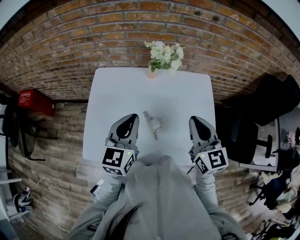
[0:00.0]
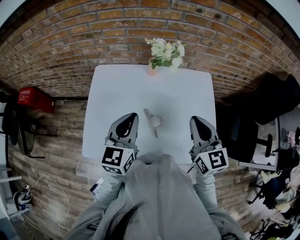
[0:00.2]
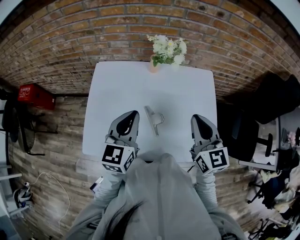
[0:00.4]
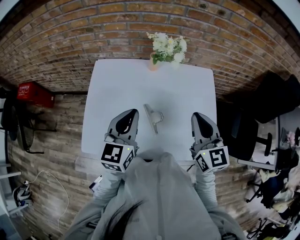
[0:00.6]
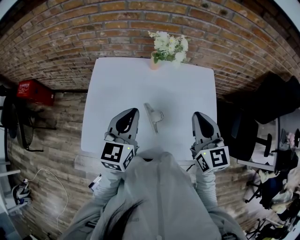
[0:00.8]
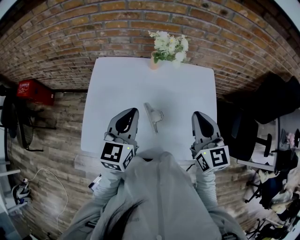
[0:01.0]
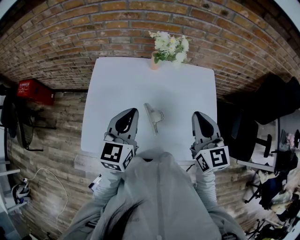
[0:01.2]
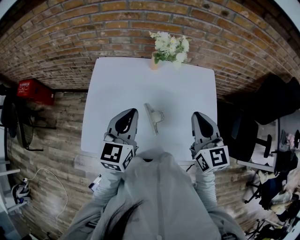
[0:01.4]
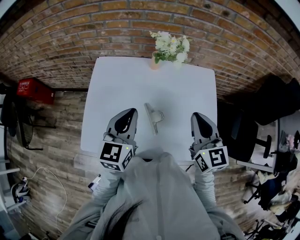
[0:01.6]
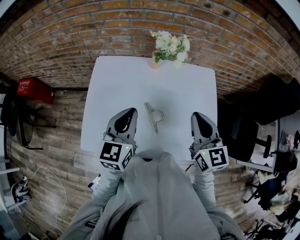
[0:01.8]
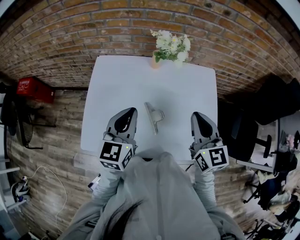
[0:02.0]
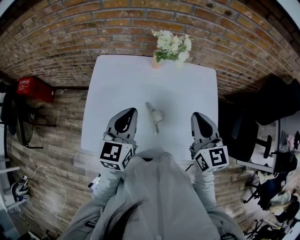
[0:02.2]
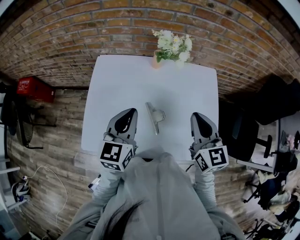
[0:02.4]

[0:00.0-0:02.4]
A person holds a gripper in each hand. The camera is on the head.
0:00.0 to 0:01.2: The two grippers keep their place.
0:01.2 to 0:02.4: There are only small adjustments of the grippers.

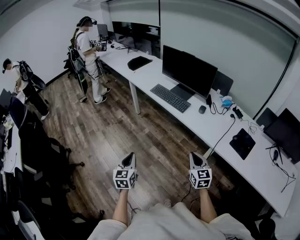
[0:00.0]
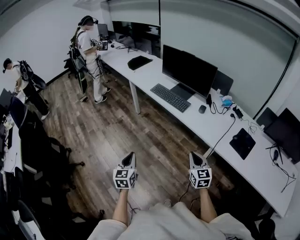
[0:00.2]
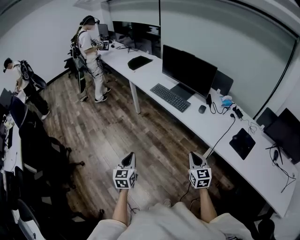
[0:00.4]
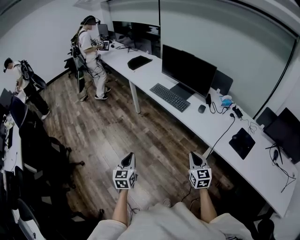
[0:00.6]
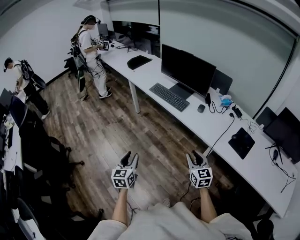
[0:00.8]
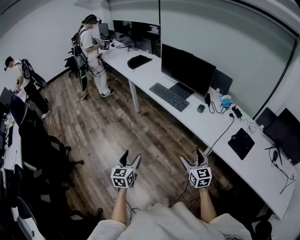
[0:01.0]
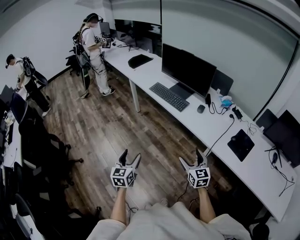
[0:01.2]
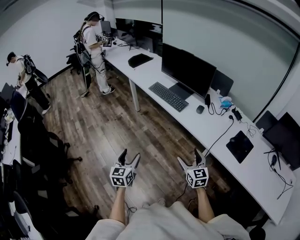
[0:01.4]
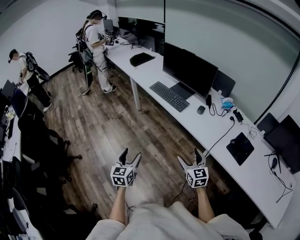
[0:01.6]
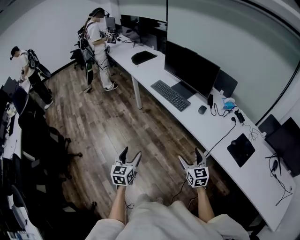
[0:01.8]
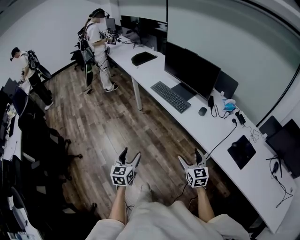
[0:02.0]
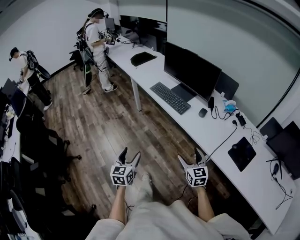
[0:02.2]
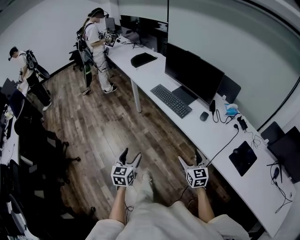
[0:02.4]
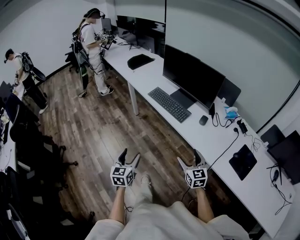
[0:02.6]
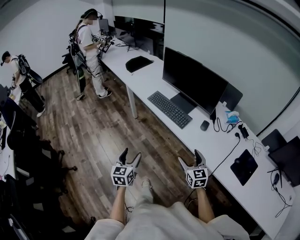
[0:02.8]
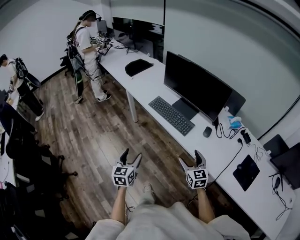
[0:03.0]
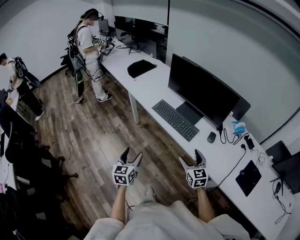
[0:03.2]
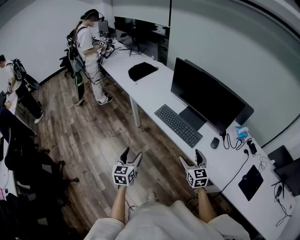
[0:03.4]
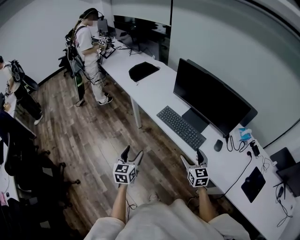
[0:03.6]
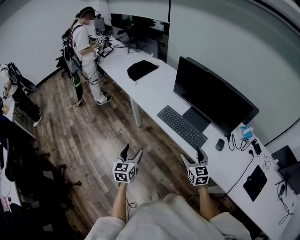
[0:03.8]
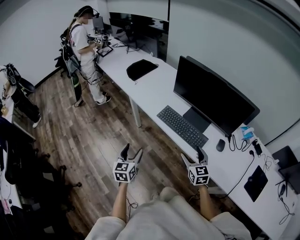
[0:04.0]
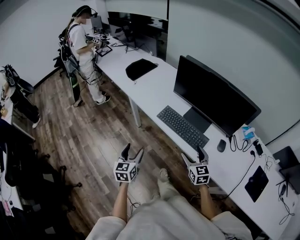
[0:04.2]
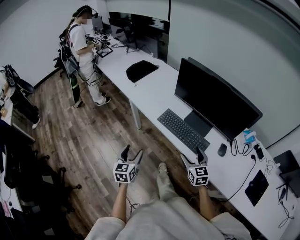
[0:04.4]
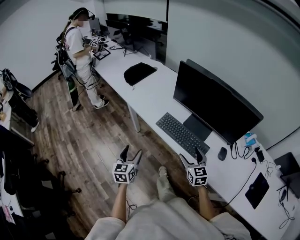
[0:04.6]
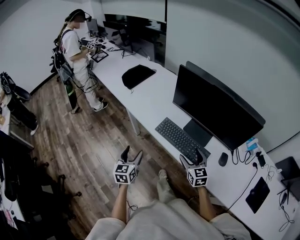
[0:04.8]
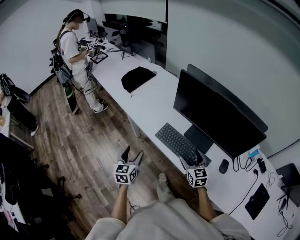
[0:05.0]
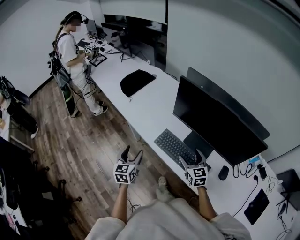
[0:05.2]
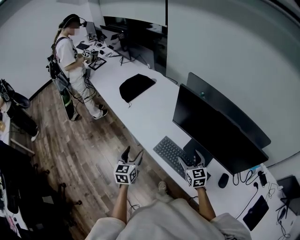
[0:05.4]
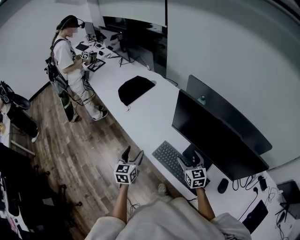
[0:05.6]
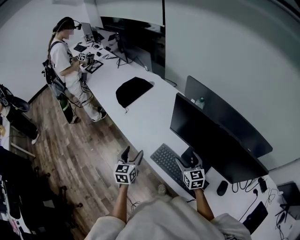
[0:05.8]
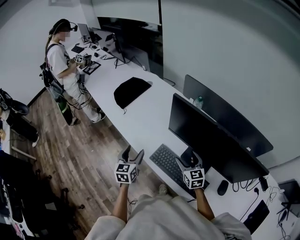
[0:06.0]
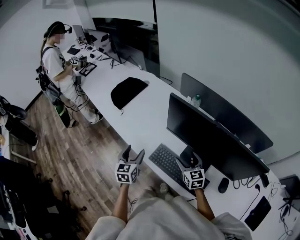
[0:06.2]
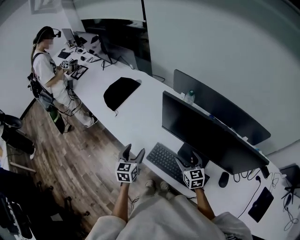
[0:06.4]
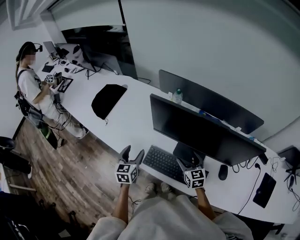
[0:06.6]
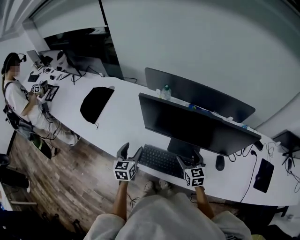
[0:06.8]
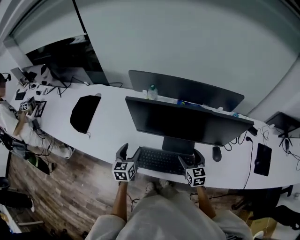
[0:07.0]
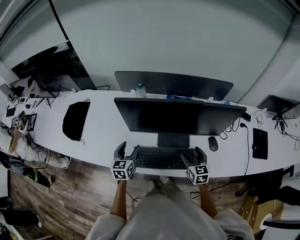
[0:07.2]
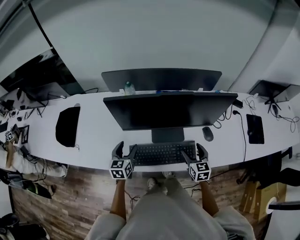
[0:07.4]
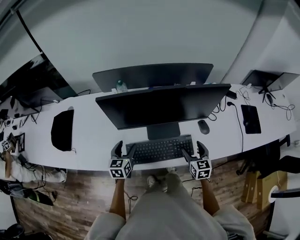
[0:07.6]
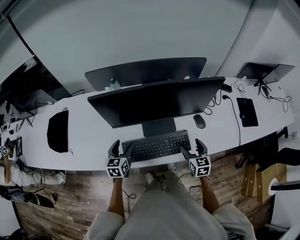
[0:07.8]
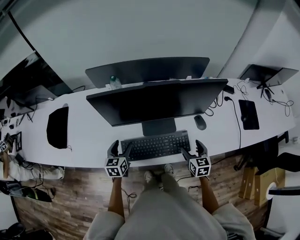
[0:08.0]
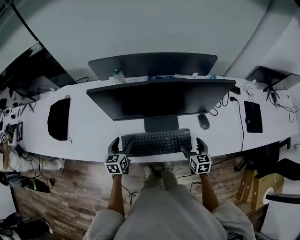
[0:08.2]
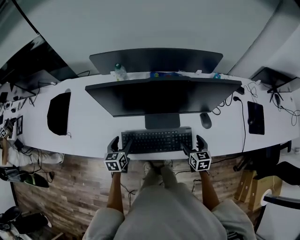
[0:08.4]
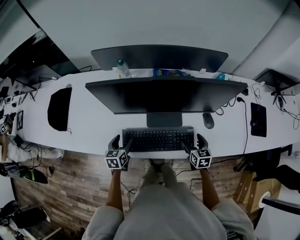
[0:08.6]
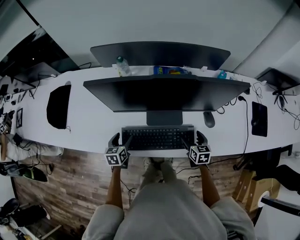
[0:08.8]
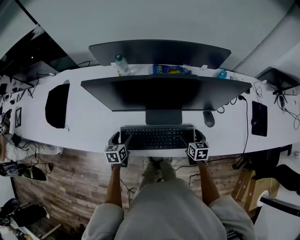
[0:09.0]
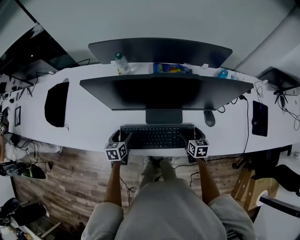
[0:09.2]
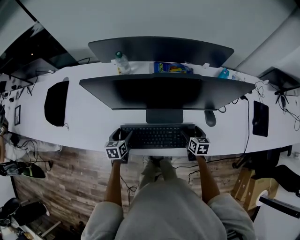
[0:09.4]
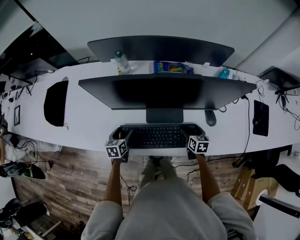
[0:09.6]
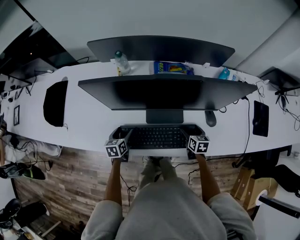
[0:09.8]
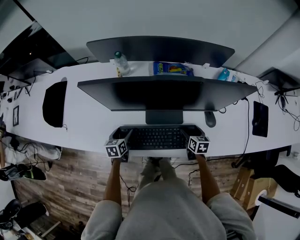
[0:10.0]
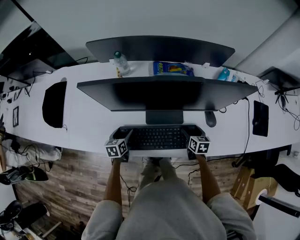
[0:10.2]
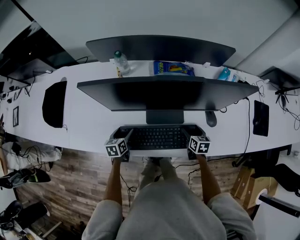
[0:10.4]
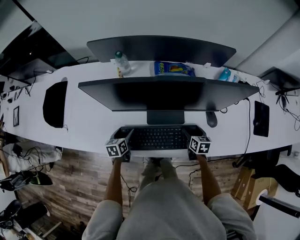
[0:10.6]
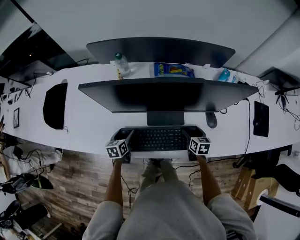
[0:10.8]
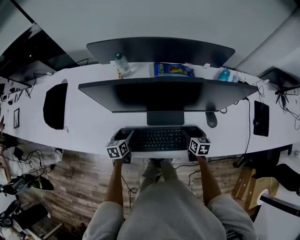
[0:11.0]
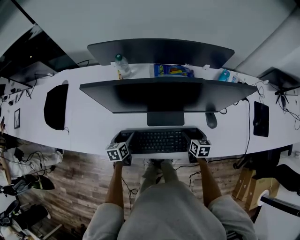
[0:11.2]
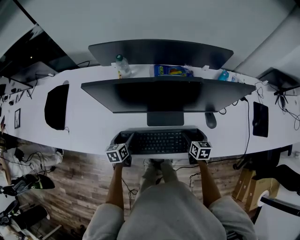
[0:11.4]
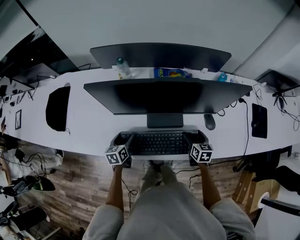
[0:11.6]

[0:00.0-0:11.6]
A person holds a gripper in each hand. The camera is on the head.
0:00.0 to 0:01.4: The right gripper opens its fingers; the left gripper shifts about 5 cm to the right, and opens.
0:01.4 to 0:02.8: Both grippers move forward, about 20 cm.
0:02.8 to 0:04.4: The grippers both shift forward by about 30 cm.
0:04.4 to 0:05.8: The two grippers go some 30 cm forward.
0:05.8 to 0:07.2: The left gripper ends up roughly 15 cm from where it was, and rotates about 40 degrees. Meanwhile the right gripper ends up approximately 15 cm from where it was, and swivels approximately 40 degrees.
0:07.2 to 0:08.8: The right gripper moves downward and to the right, roughly 15 cm, while the left gripper is displaced downward by approximately 15 cm.
0:08.8 to 0:10.2: The left gripper moves approximately 5 cm. Meanwhile the right gripper ends up about 5 cm from where it was.
0:10.2 to 0:11.6: The right gripper shifts about 5 cm upward.

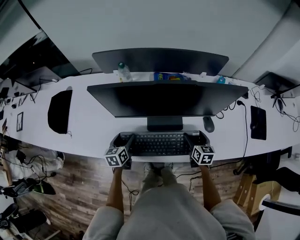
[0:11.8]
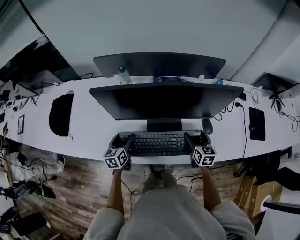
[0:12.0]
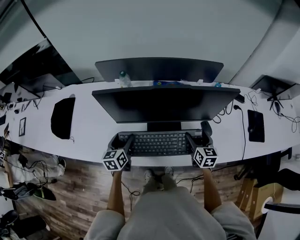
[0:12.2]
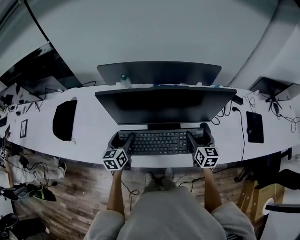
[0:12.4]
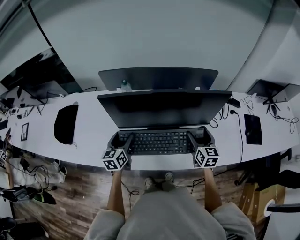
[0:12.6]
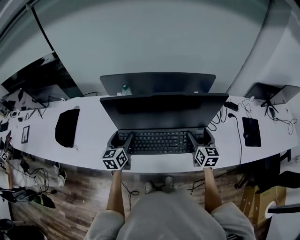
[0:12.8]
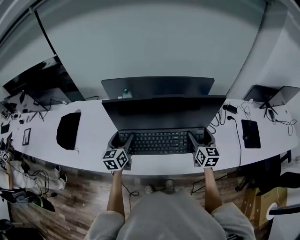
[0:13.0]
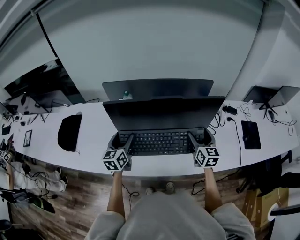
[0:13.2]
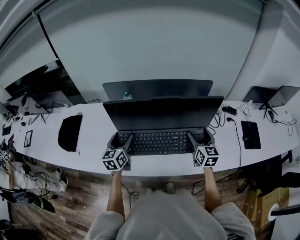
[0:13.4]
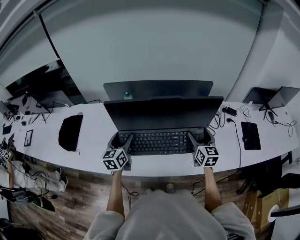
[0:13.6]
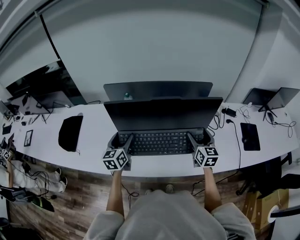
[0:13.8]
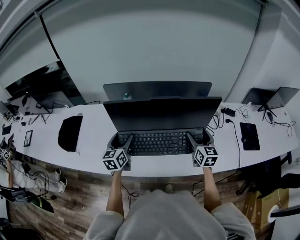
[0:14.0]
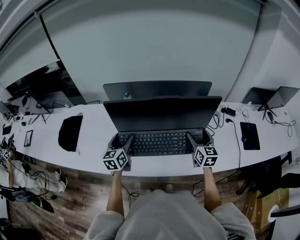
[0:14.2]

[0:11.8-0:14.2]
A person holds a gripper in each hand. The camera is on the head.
0:11.8 to 0:13.0: Both grippers travel together upward, some 20 cm. The right gripper turns by some 20 degrees, while the left gripper rotates roughly 20 degrees.
0:13.0 to 0:14.2: The grippers stay close to where they were, moving slightly.

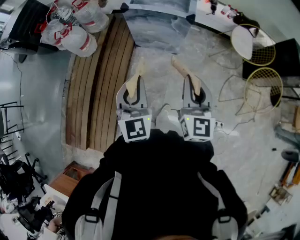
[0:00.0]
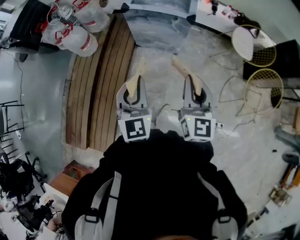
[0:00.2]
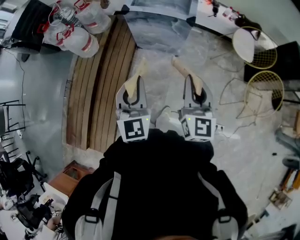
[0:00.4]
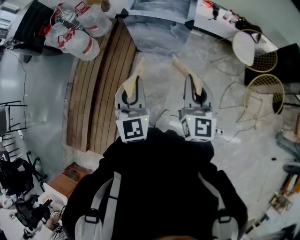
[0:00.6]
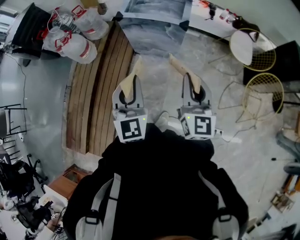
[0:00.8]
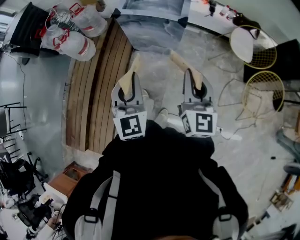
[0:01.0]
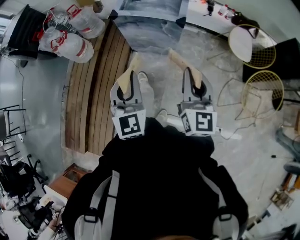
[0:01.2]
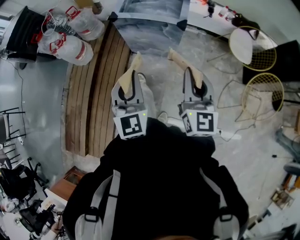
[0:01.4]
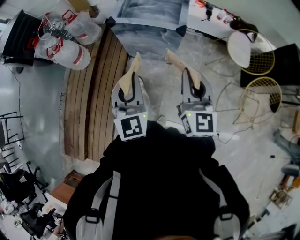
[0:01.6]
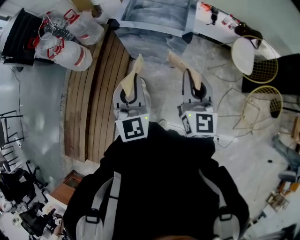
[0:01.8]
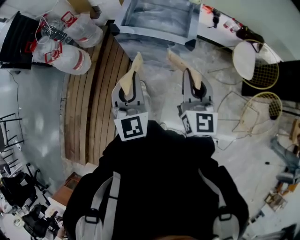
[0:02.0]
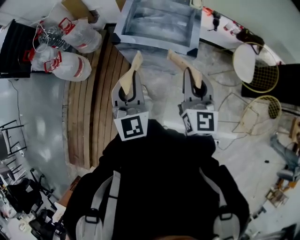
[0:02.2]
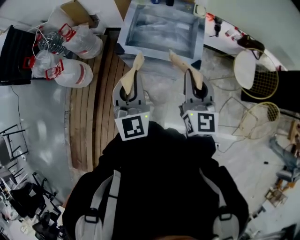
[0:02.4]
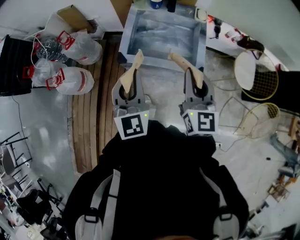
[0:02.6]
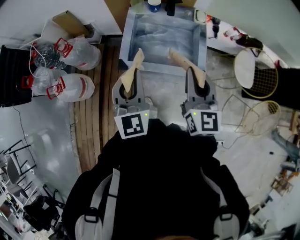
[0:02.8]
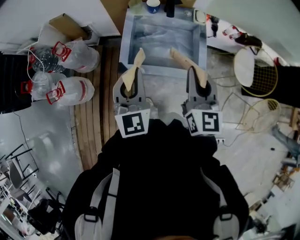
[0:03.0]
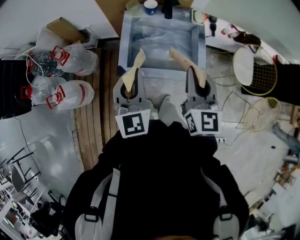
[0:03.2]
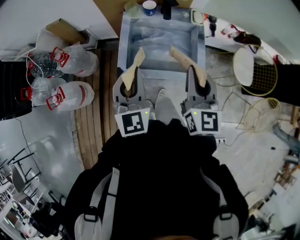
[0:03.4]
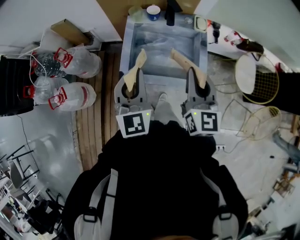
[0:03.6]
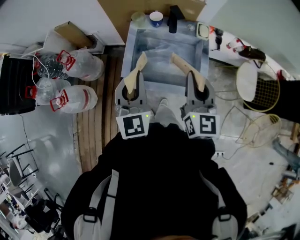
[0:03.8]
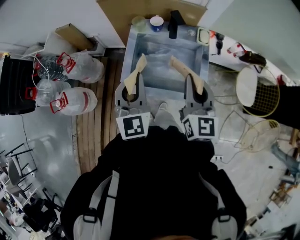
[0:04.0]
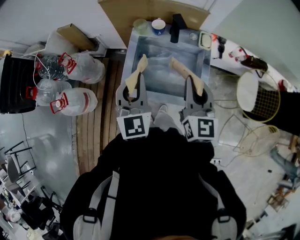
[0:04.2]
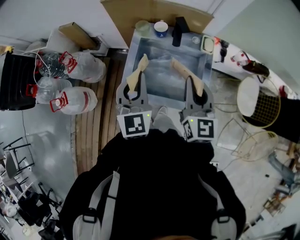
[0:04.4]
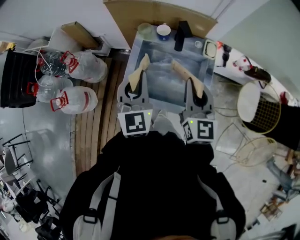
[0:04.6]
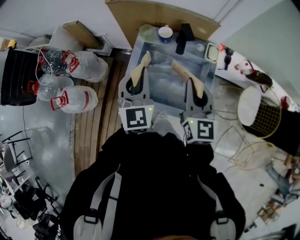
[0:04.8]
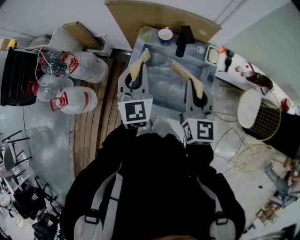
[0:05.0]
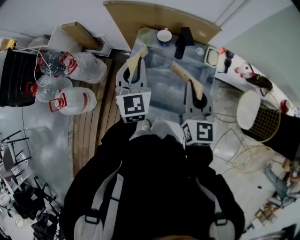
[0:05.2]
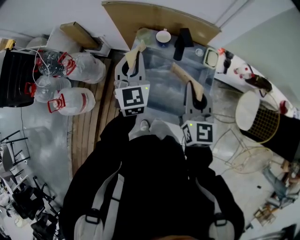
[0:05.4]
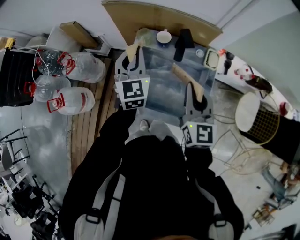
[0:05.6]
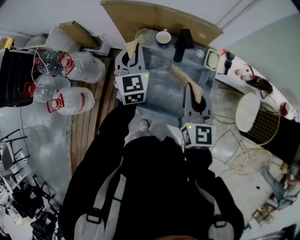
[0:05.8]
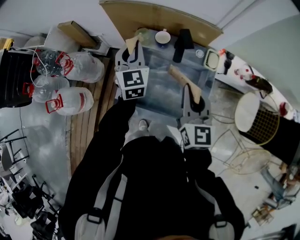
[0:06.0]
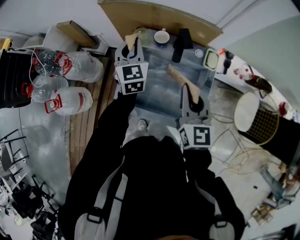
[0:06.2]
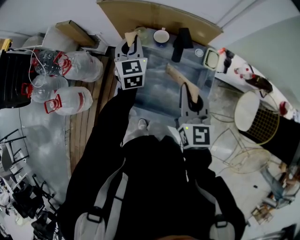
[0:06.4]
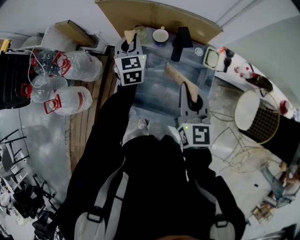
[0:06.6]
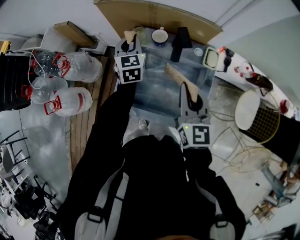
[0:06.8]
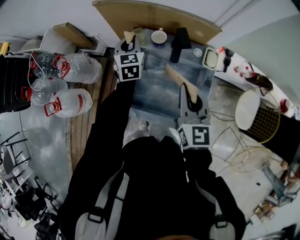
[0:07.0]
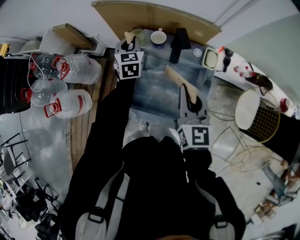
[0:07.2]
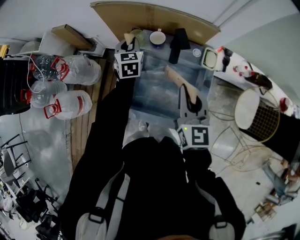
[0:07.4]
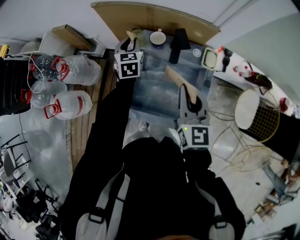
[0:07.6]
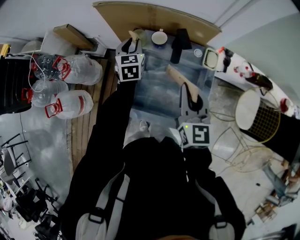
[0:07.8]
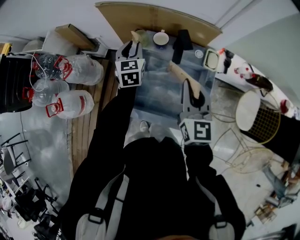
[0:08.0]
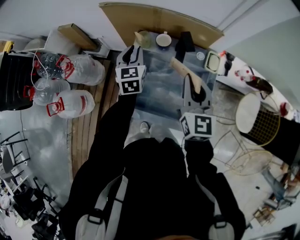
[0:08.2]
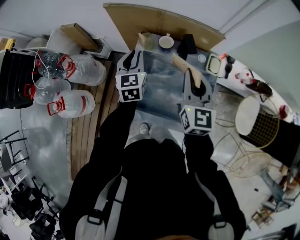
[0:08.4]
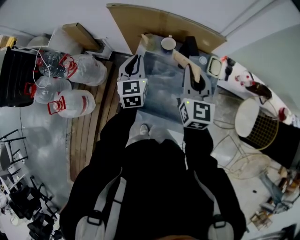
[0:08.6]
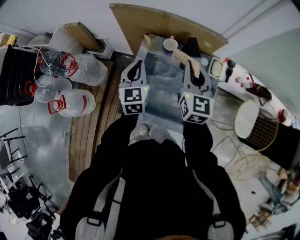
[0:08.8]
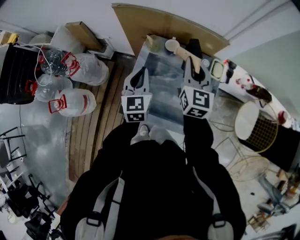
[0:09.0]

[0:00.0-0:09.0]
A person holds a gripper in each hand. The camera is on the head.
0:00.0 to 0:01.6: Both grippers move forward and to the right, approximately 15 cm.
0:01.6 to 0:03.0: The two grippers go roughly 40 cm forward.
0:03.0 to 0:04.4: The grippers both shift forward by about 15 cm.
0:04.4 to 0:06.0: The left gripper goes some 20 cm forward. Meanwhile the right gripper travels forward by about 10 cm.
0:06.0 to 0:07.6: The left gripper moves downward and forward, roughly 15 cm.
0:07.6 to 0:09.0: The right gripper shifts roughly 10 cm forward. Meanwhile the left gripper moves backward and upward, roughly 15 cm.
